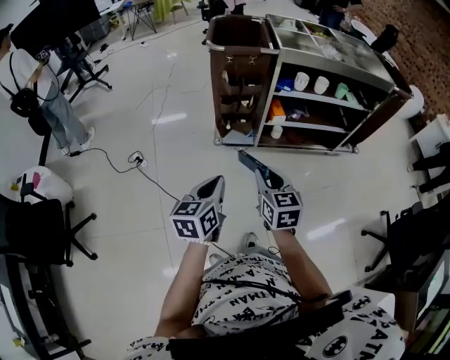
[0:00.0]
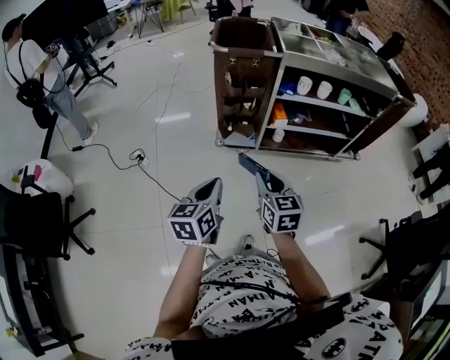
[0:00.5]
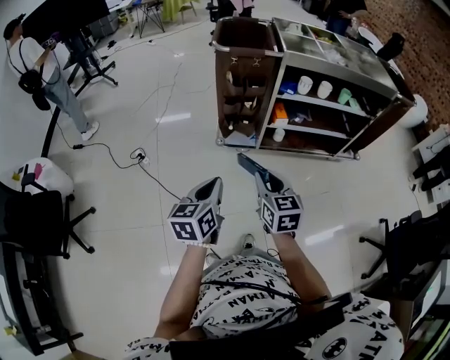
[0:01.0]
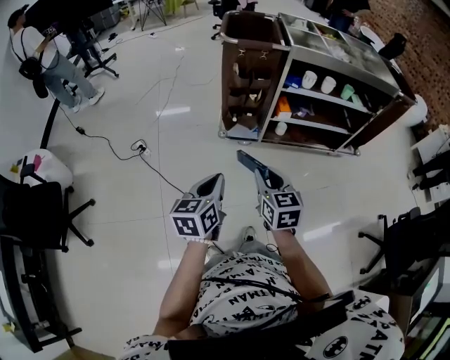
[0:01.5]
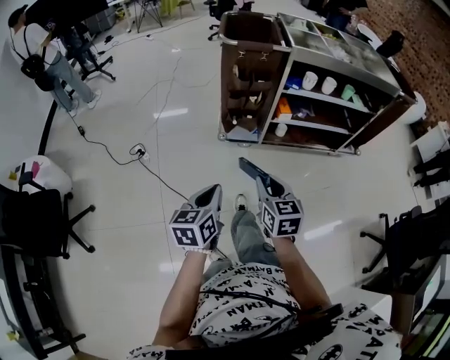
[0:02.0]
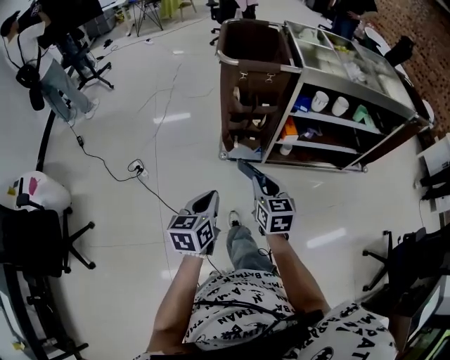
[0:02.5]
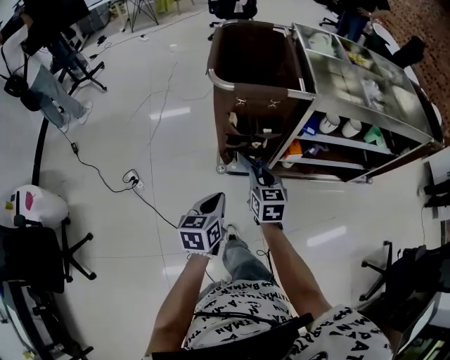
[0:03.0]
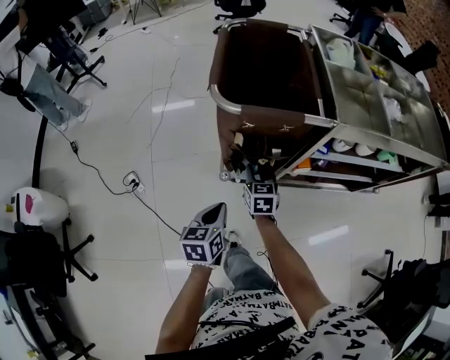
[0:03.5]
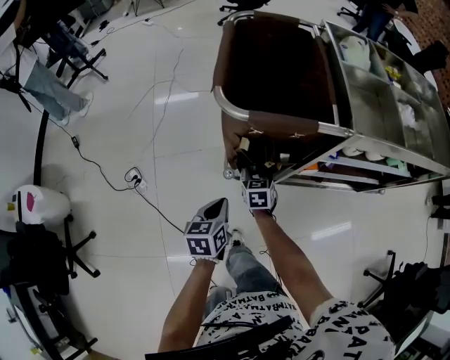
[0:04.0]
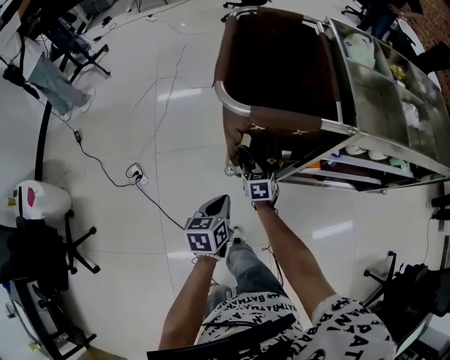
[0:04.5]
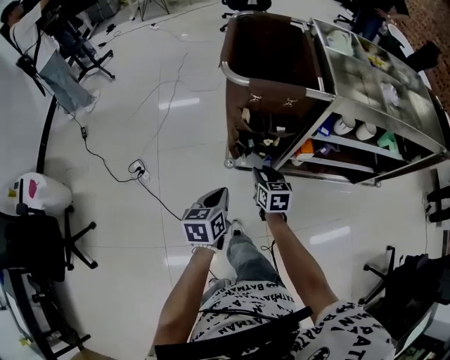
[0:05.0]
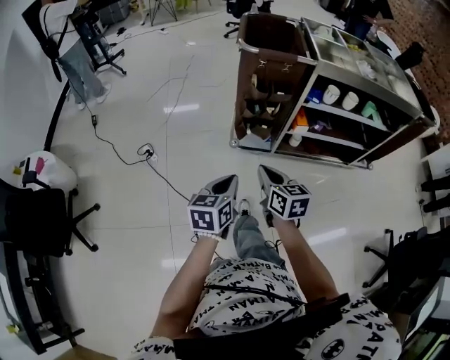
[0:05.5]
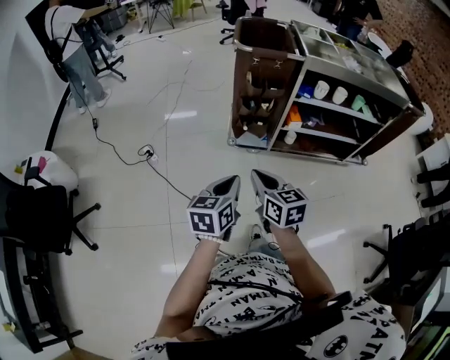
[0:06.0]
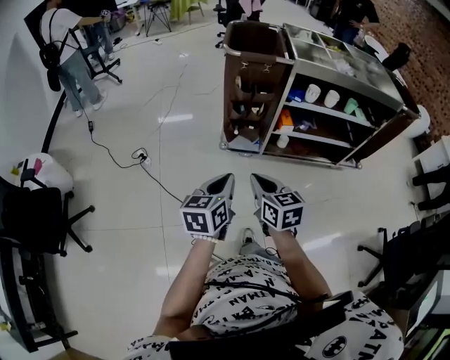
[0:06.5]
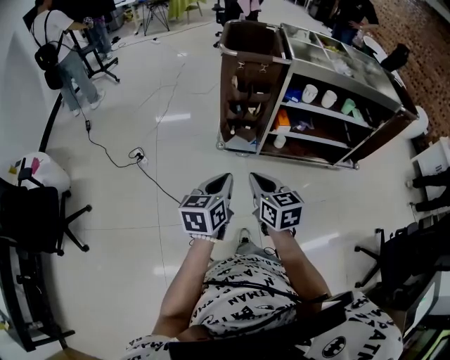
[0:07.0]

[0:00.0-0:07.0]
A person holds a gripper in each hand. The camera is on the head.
0:00.0 to 0:02.0: The left gripper moves approximately 5 cm.
0:02.0 to 0:03.5: Both grippers move forward, about 40 cm.
0:03.5 to 0:05.0: The right gripper moves backward, roughly 10 cm.
0:05.0 to 0:07.0: The grippers both shift backward and upward by approximately 35 cm. The right gripper closes its fingers.

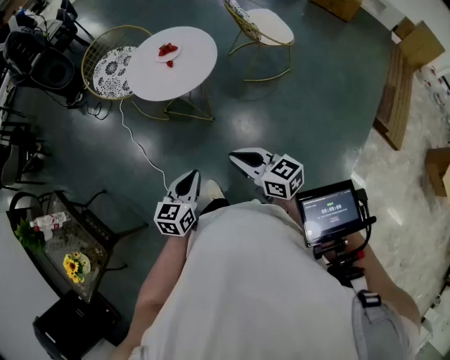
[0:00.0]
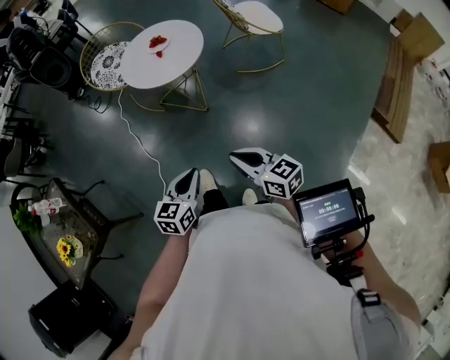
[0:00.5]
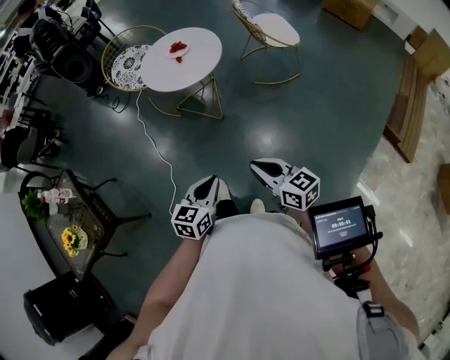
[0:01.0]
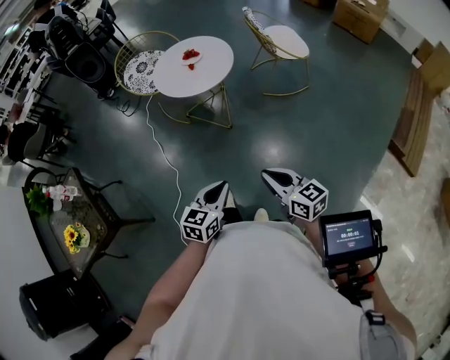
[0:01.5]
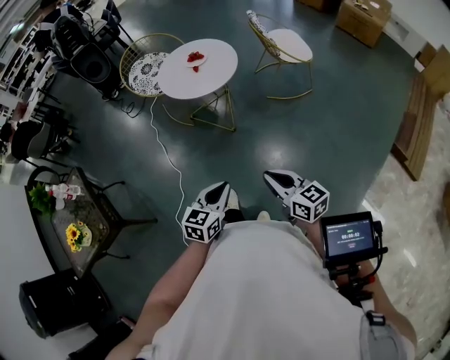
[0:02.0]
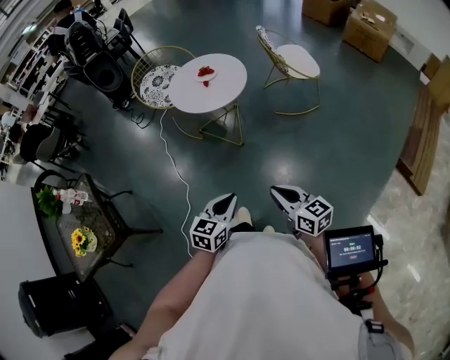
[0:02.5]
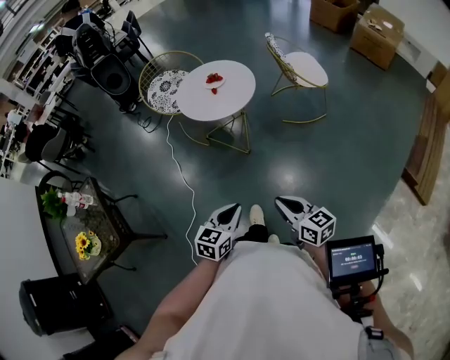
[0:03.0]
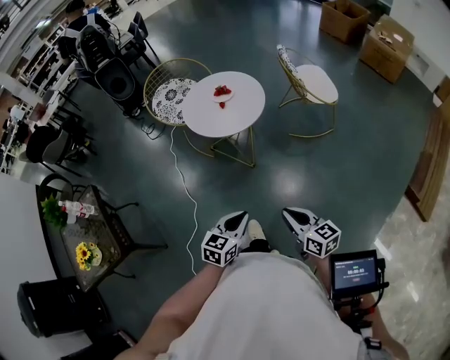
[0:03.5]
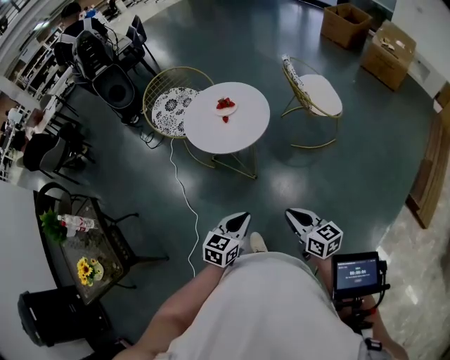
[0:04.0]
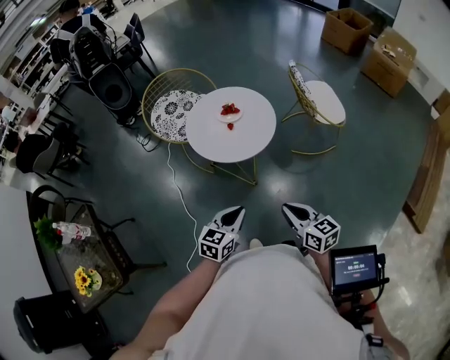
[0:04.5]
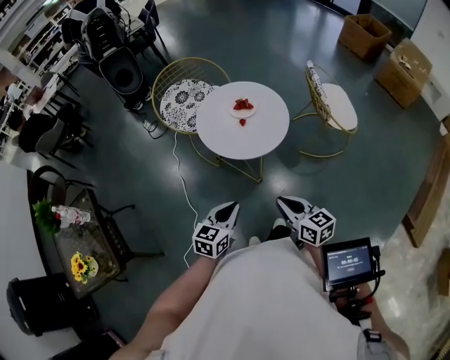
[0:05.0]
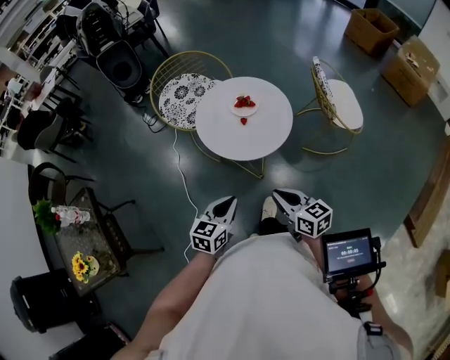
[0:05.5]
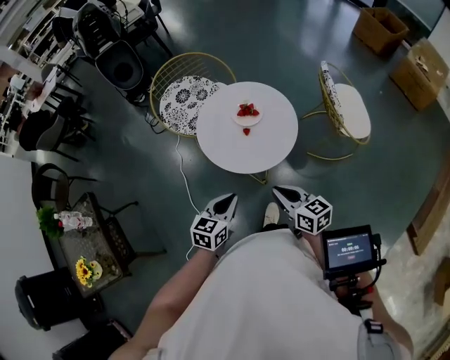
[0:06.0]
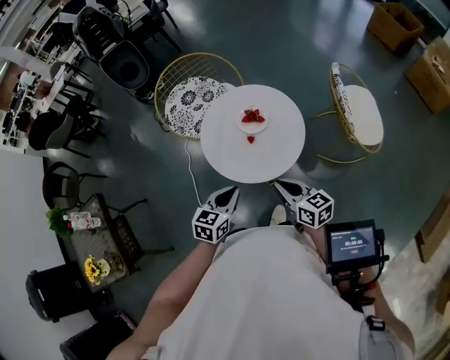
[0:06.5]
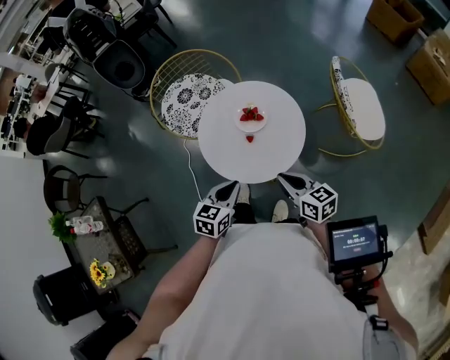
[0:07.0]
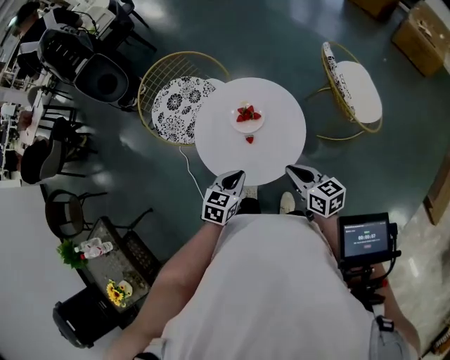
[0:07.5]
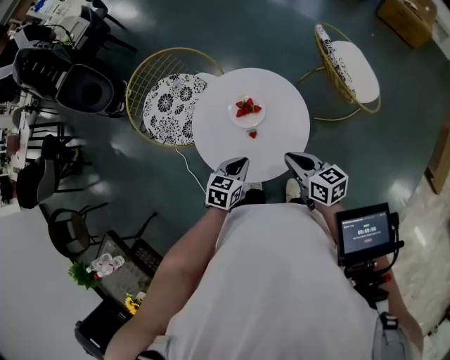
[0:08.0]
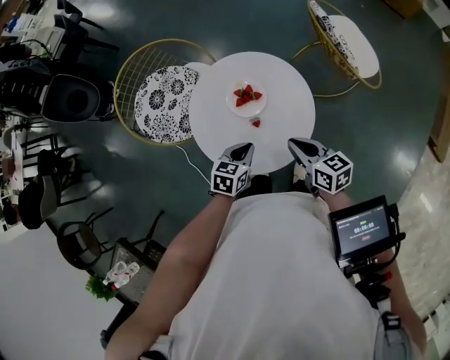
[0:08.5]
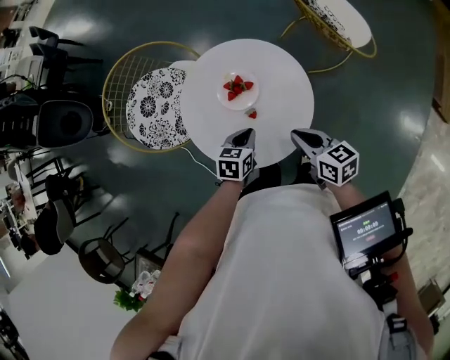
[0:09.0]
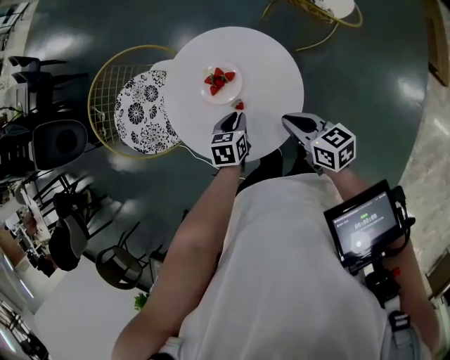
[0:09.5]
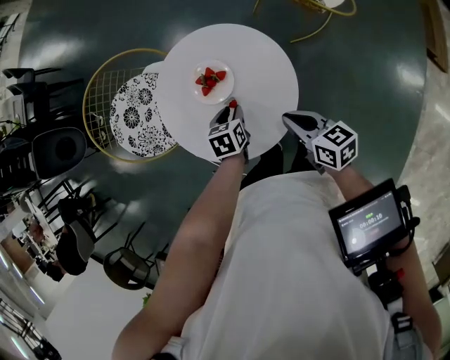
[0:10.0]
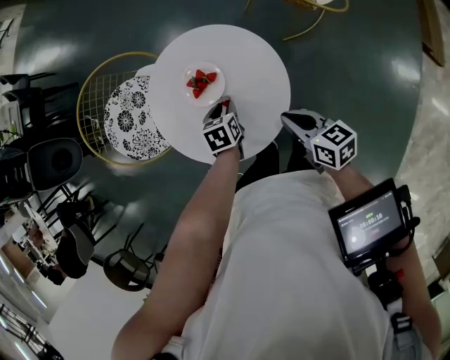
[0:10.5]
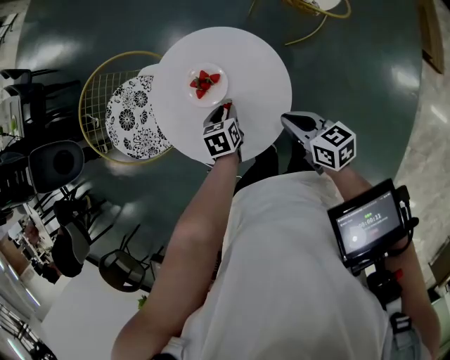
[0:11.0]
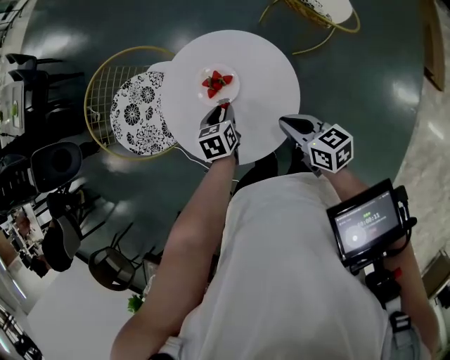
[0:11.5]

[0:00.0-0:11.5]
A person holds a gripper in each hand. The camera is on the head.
0:00.0 to 0:02.0: Both grippers move backward and to the right, about 15 cm.
0:02.0 to 0:04.0: Both grippers travel together forward, some 15 cm.
0:04.0 to 0:06.0: The grippers both shift forward by approximately 25 cm.
0:06.0 to 0:07.5: Both grippers move forward, about 15 cm.
0:07.5 to 0:09.5: The left gripper heads downward and forward, covering roughly 15 cm; the right gripper heads downward, covering about 5 cm, and rotates about 20 degrees.
0:09.5 to 0:11.5: The grippers make only small movements.

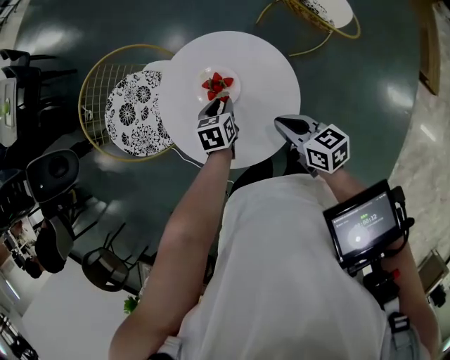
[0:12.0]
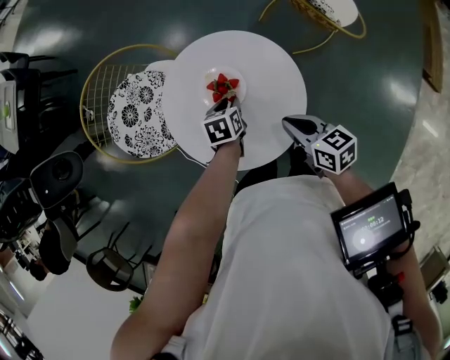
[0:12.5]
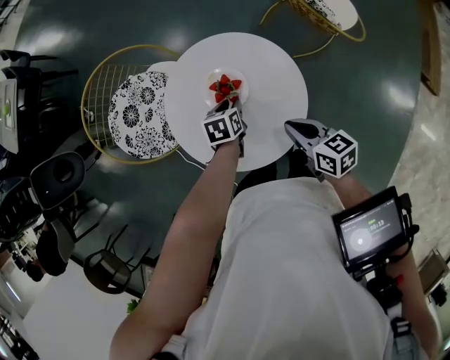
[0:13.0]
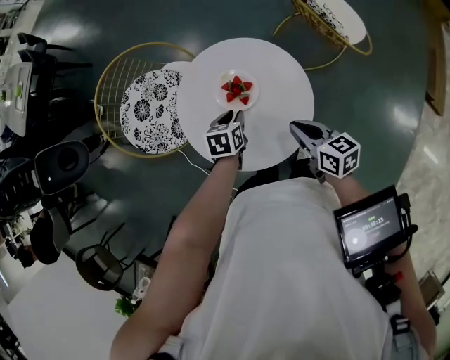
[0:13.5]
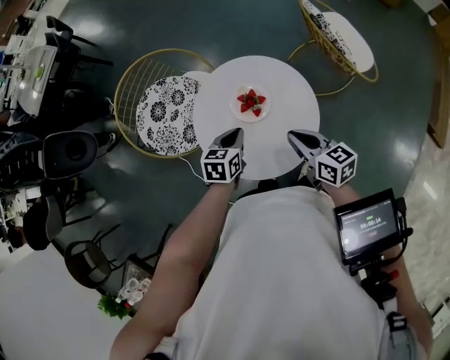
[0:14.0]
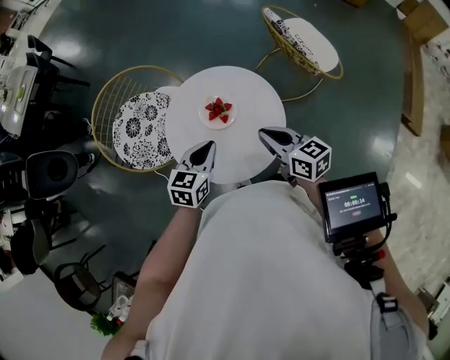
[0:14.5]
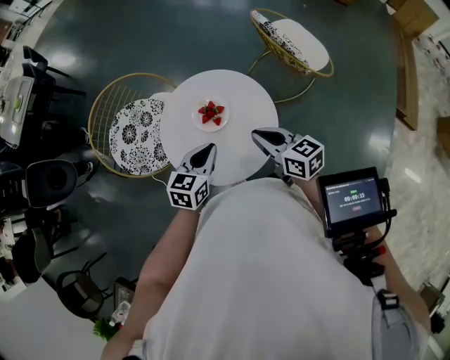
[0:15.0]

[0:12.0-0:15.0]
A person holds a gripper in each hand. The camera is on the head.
0:12.0 to 0:13.5: There are only small adjustments of the grippers.
0:13.5 to 0:15.0: The right gripper heads upward, covering about 10 cm; the left gripper travels upward and backward by some 15 cm, changes its angle by approximately 30 degrees, and closes its fingers.

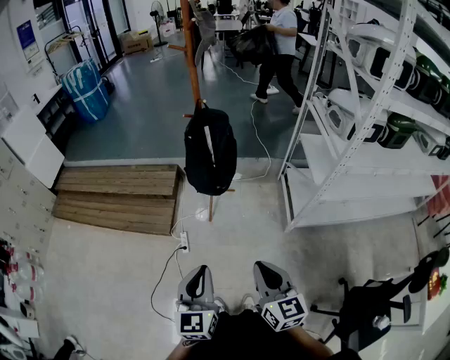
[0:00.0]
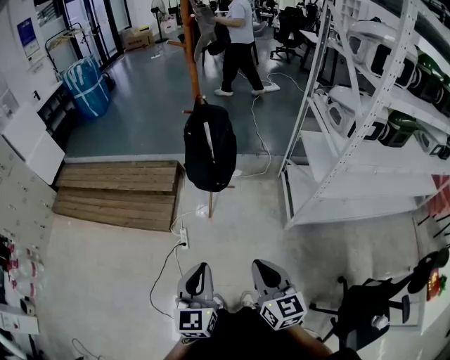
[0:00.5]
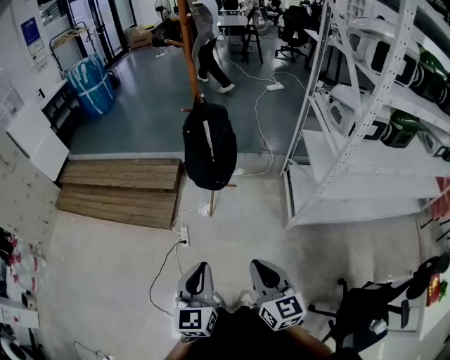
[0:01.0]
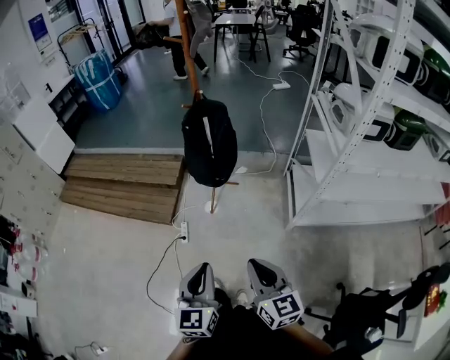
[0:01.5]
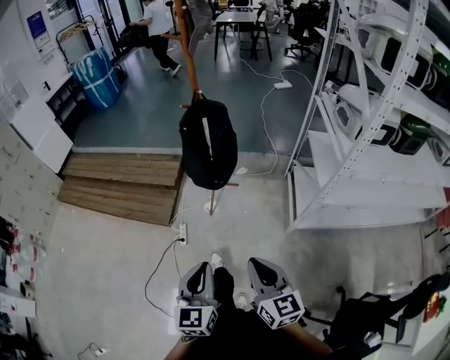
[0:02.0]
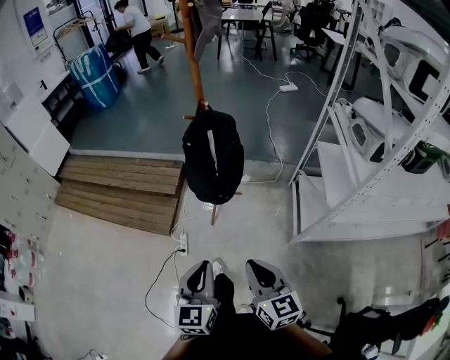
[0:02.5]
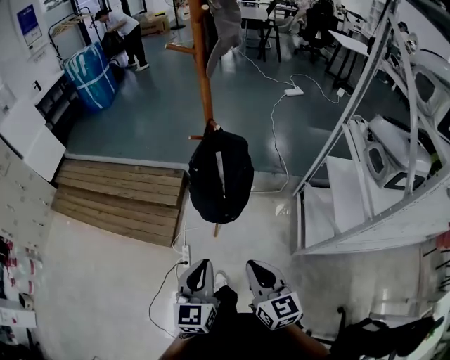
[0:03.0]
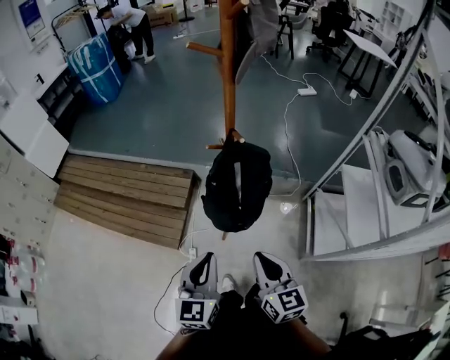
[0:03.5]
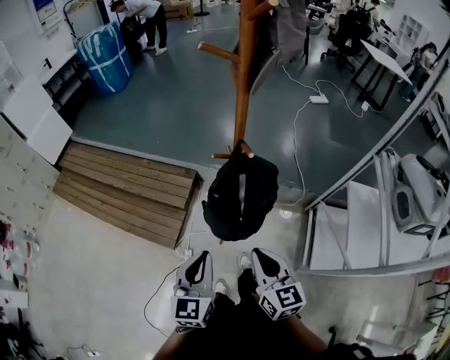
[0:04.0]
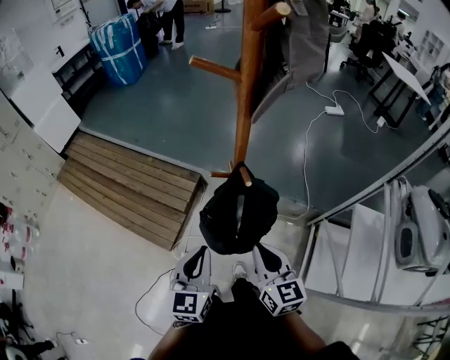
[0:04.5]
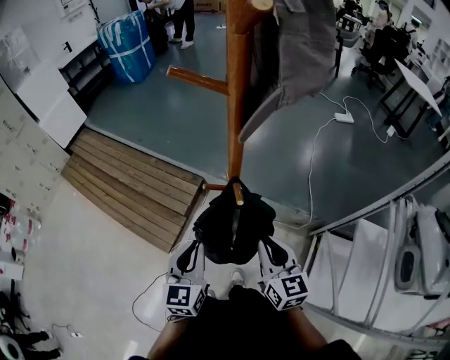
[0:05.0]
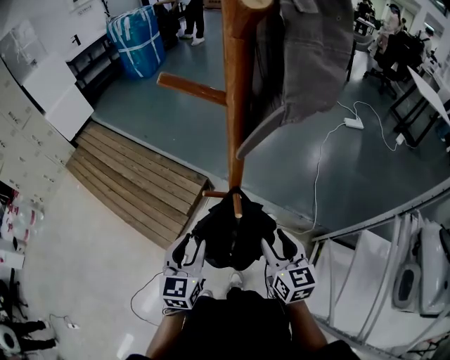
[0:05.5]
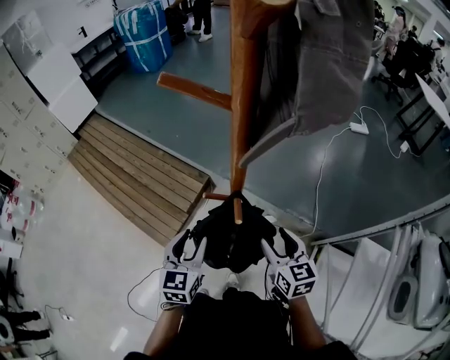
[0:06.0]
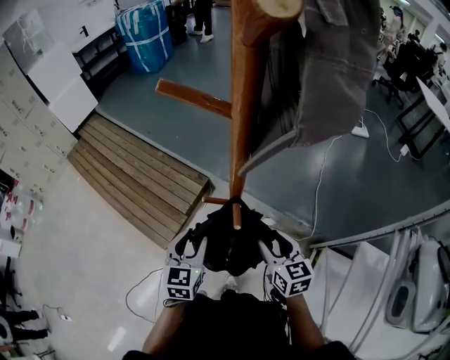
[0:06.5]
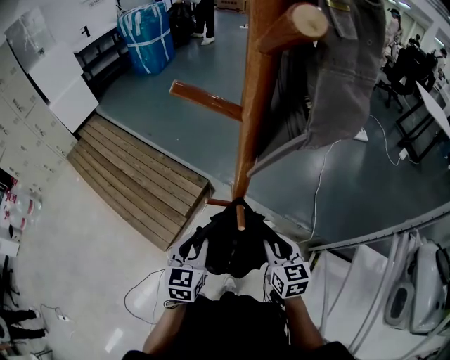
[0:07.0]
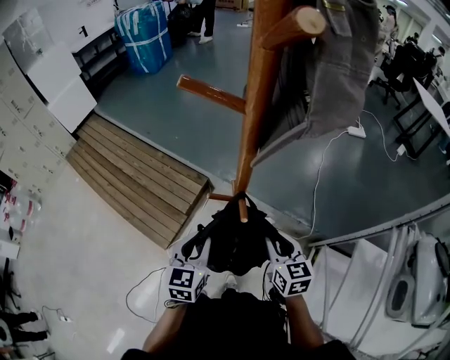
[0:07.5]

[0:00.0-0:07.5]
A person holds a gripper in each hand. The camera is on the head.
0:00.0 to 0:02.0: Both grippers travel together to the right, some 5 cm.
0:02.0 to 0:04.0: The pair of grippers is taken forward, roughly 40 cm.
0:04.0 to 0:05.5: The right gripper goes some 25 cm forward and to the right, and opens, while the left gripper travels forward by approximately 20 cm, and opens.
0:05.5 to 0:07.5: There are only small adjustments of the grippers.
